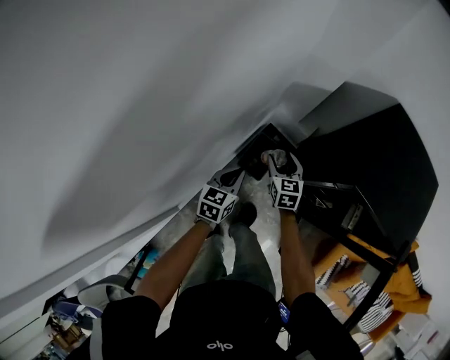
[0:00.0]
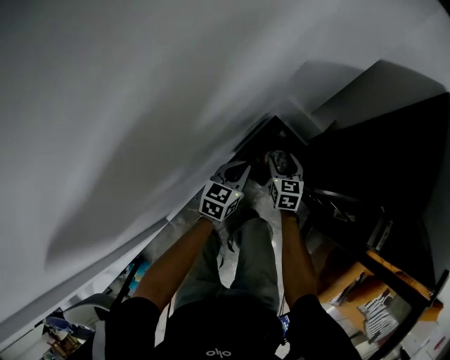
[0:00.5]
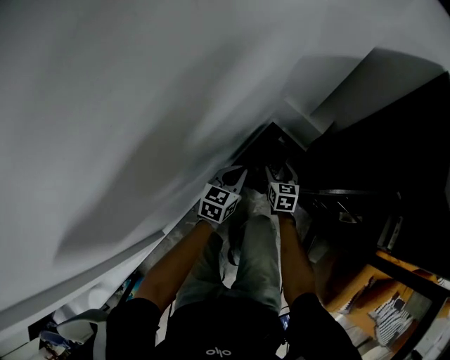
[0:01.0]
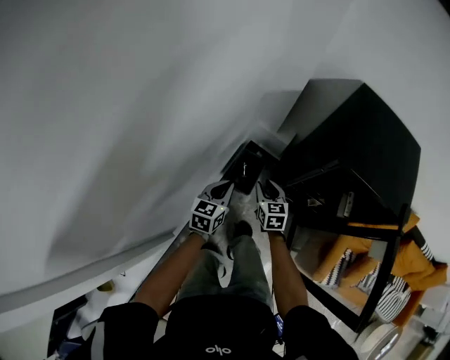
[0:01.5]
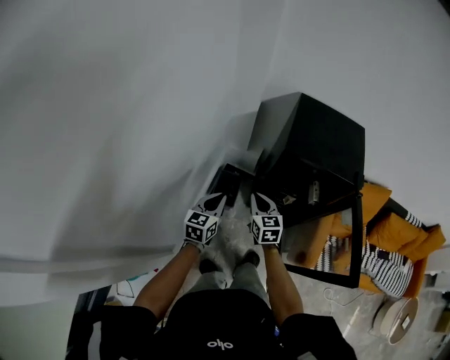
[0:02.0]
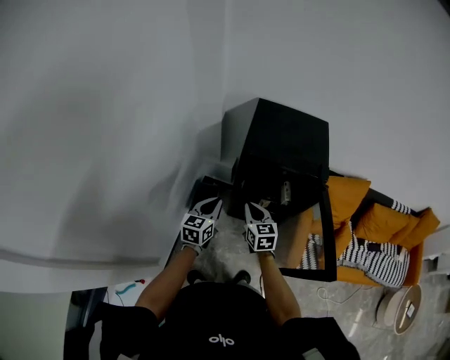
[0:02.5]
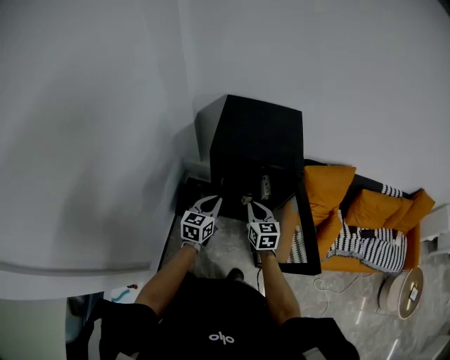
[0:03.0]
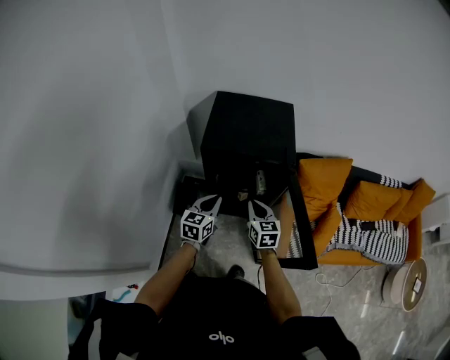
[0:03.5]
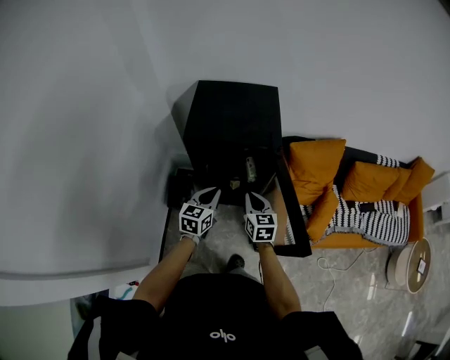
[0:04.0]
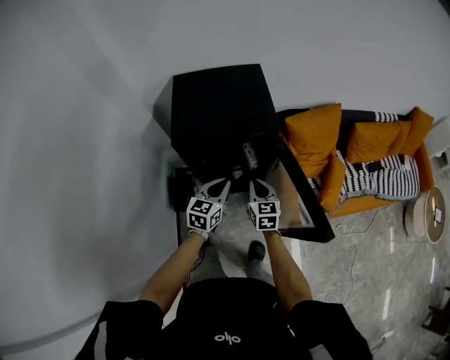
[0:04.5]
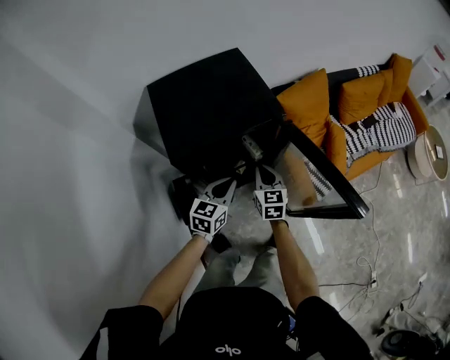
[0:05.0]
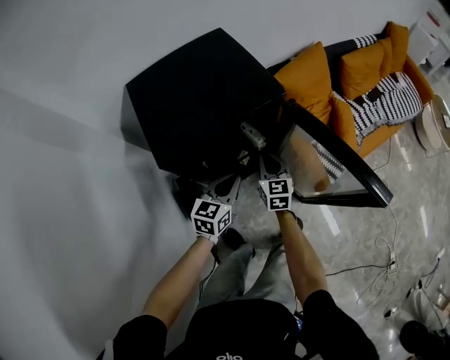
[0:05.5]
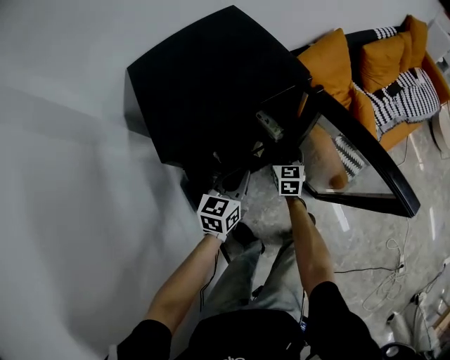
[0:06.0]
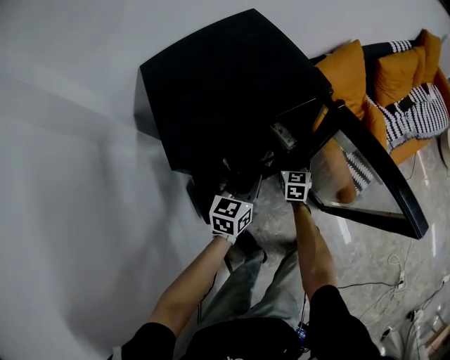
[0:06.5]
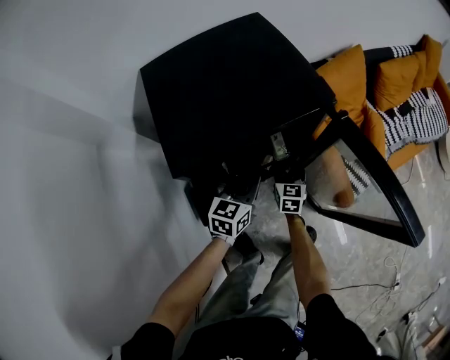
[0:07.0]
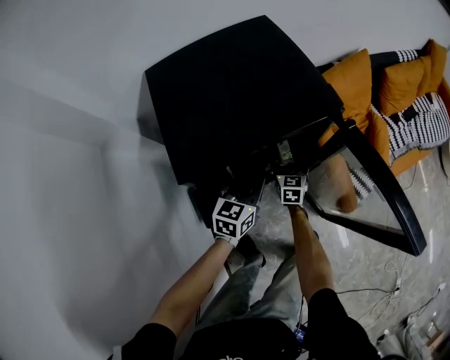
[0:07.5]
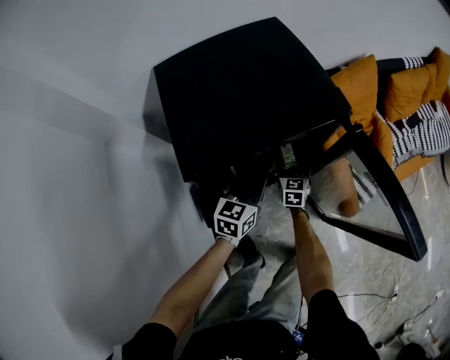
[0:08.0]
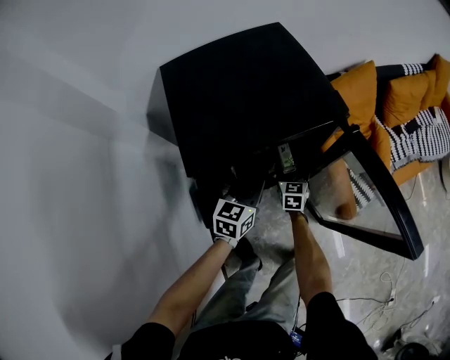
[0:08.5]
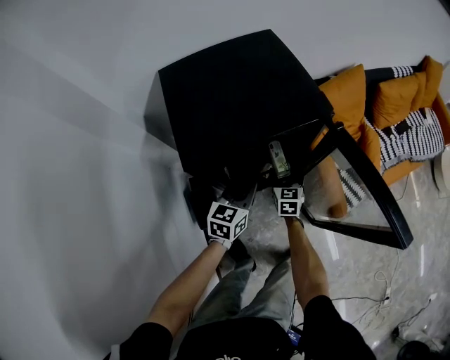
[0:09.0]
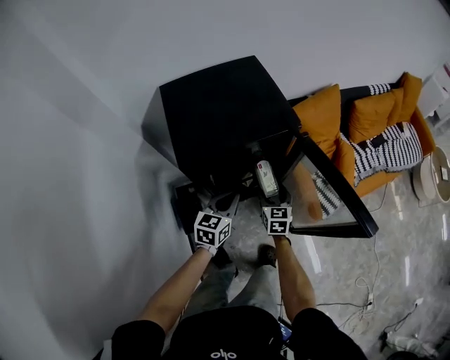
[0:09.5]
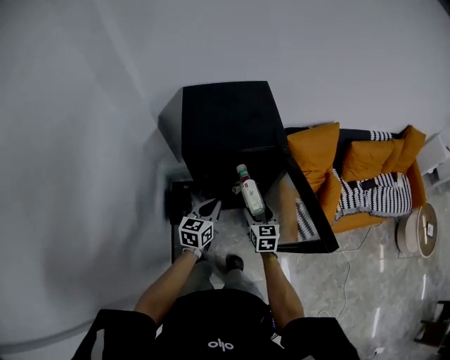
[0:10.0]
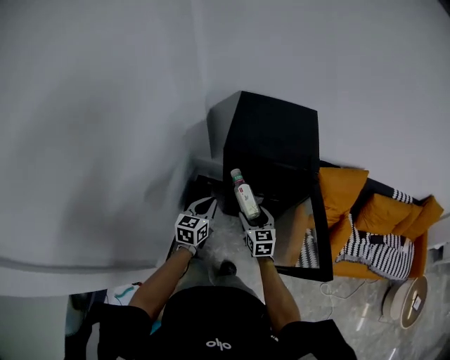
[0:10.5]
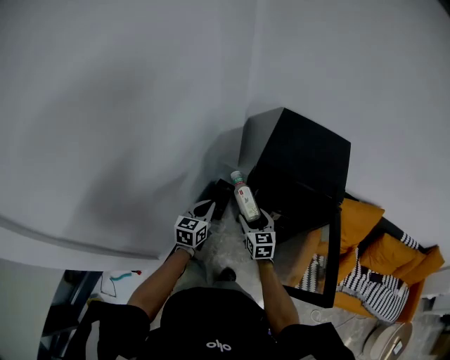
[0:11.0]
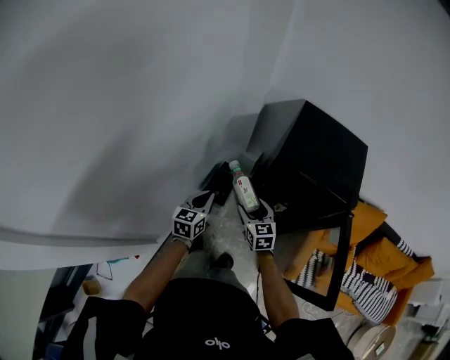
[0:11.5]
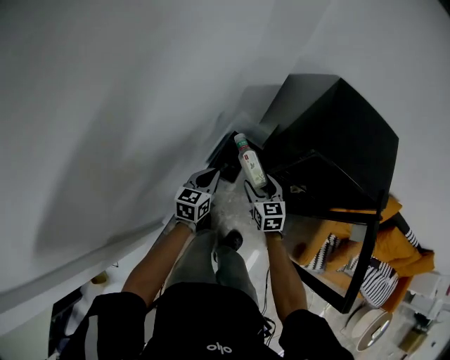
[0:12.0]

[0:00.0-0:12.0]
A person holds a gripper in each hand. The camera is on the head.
0.0 to 2.0 s: The right gripper is displaced backward and upward by about 25 cm, and closes its fingers. Meanwhile the left gripper is displaced upward and backward by some 20 cm.
2.0 to 4.0 s: The grippers both shift to the right by some 30 cm.
4.0 to 6.0 s: The right gripper is displaced downward by approximately 25 cm, swivels approximately 30 degrees, and opens. The left gripper is displaced downward by approximately 15 cm, and turns by some 30 degrees.
6.0 to 8.0 s: The left gripper shifts by some 5 cm; the right gripper shifts some 5 cm to the left, and opens up.
8.0 to 10.0 s: The right gripper is displaced upward and backward by approximately 25 cm; the left gripper moves backward and upward, about 15 cm, and swivels some 20 degrees.
10.0 to 12.0 s: The right gripper shifts by approximately 35 cm, and rotates some 40 degrees; the left gripper shifts by some 35 cm, and rotates roughly 30 degrees.

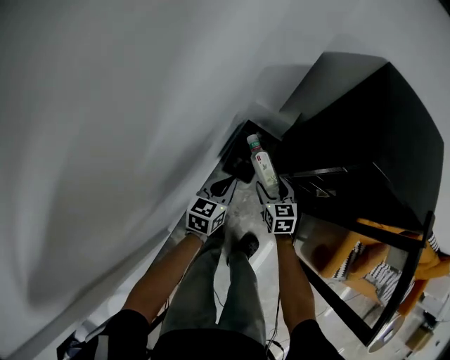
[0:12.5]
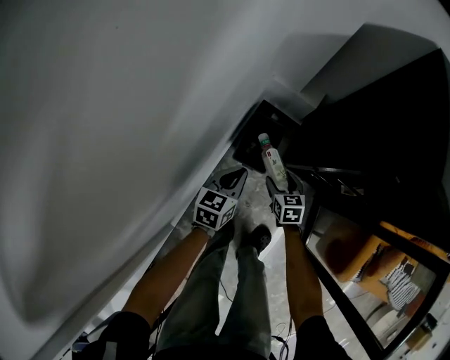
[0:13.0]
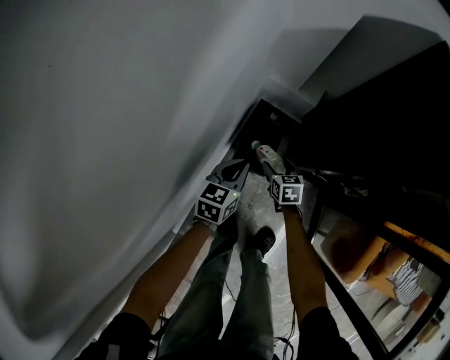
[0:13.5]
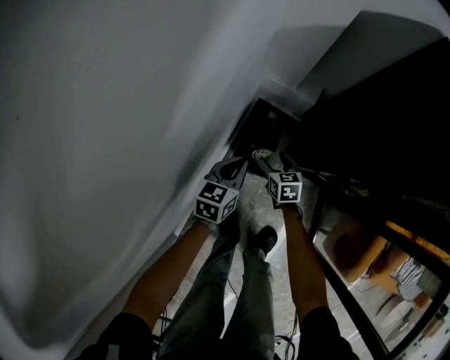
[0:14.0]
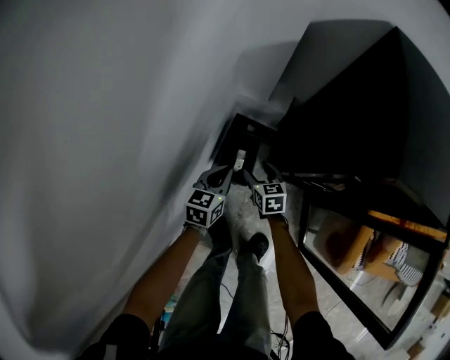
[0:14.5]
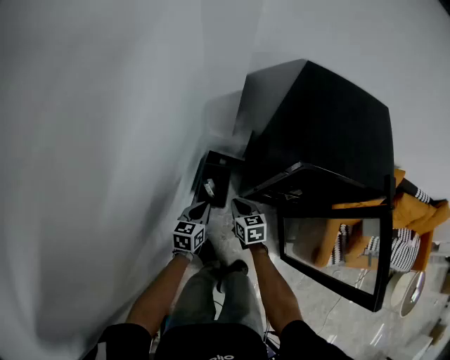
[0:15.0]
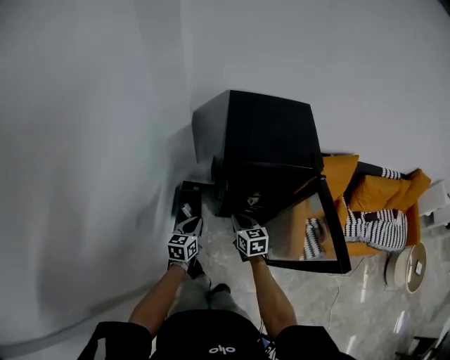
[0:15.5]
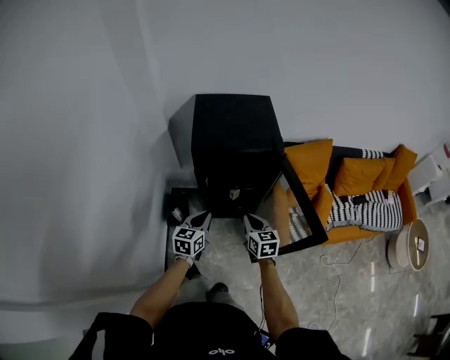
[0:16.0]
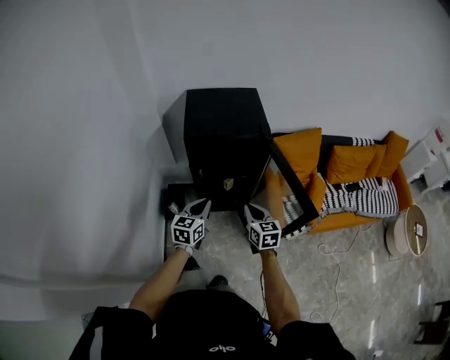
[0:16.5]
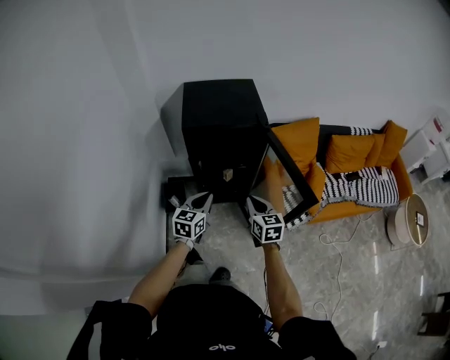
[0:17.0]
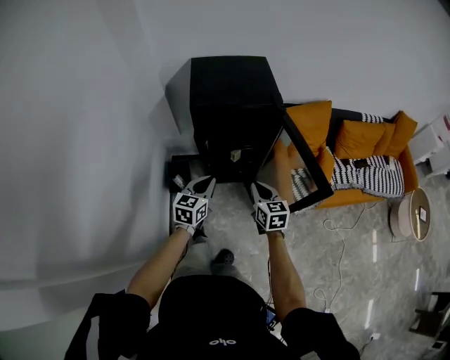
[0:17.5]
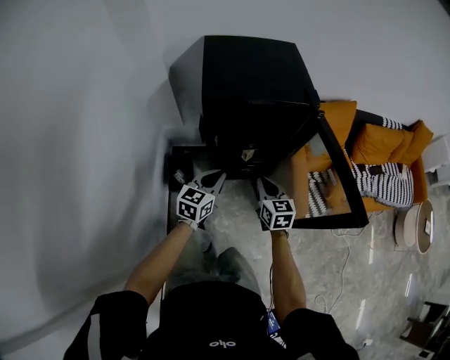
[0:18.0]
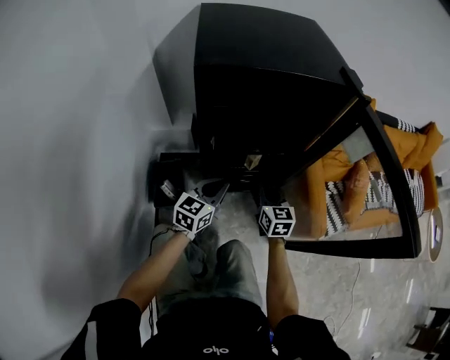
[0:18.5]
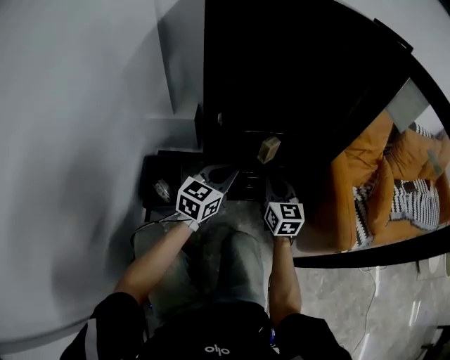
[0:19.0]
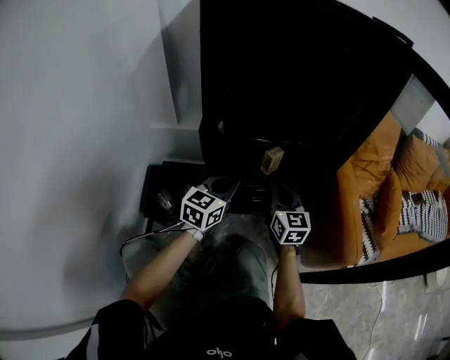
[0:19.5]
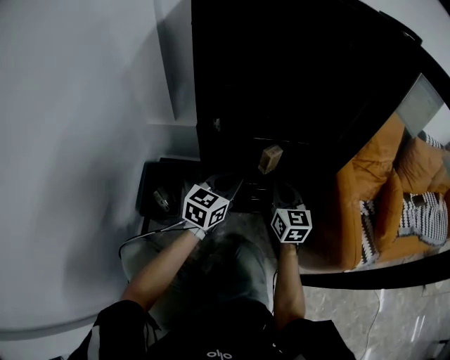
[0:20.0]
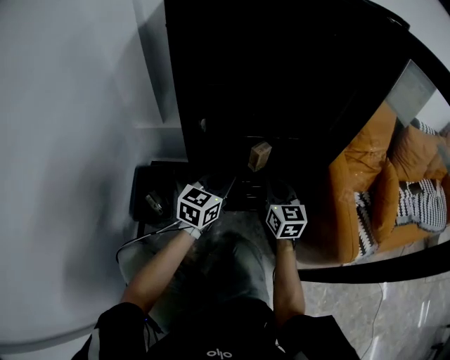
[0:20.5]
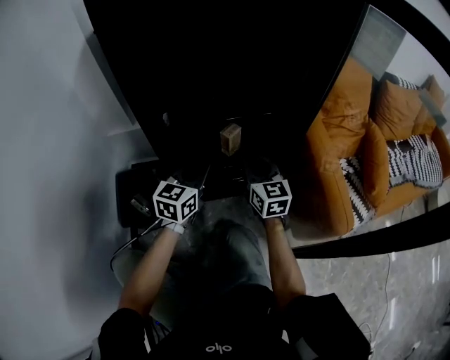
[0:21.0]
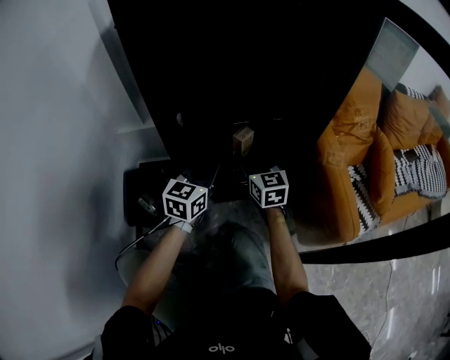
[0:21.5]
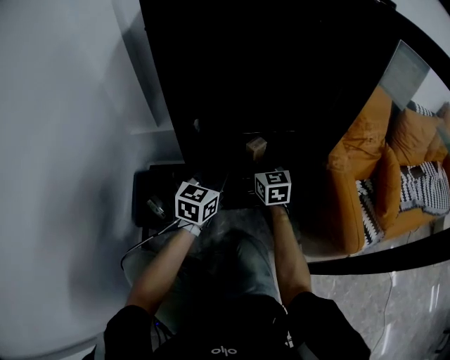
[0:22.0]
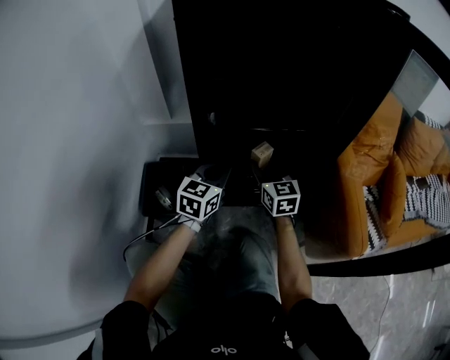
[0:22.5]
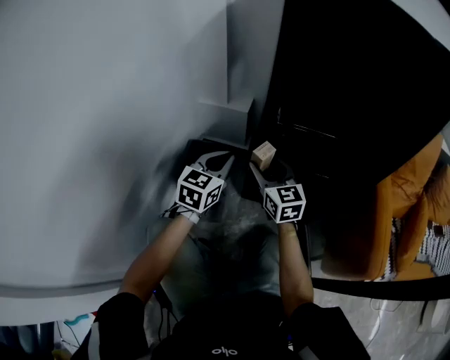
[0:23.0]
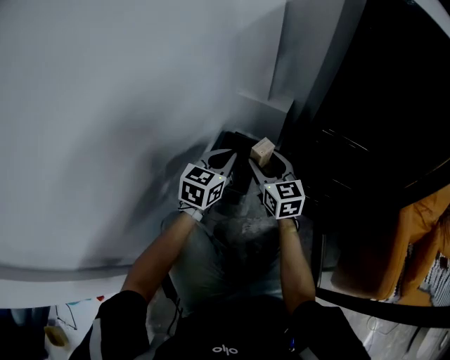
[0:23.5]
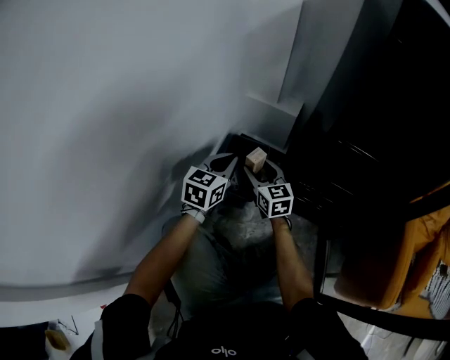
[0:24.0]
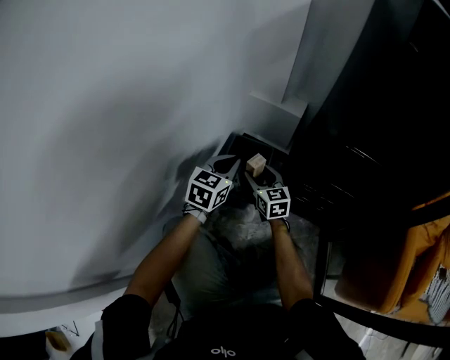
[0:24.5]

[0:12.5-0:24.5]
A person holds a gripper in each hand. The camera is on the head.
12.5 to 14.5 s: Both grippers travel together downward and forward, approximately 15 cm.
14.5 to 16.5 s: Both grippers travel together upward, to the right and backward, approximately 60 cm. The left gripper swivels about 30 degrees. The right gripper rotates roughly 30 degrees, and closes up.
16.5 to 18.5 s: Both grippers travel together downward and forward, about 35 cm.
18.5 to 20.5 s: The grippers both shift downward and forward by roughly 20 cm.
20.5 to 22.5 s: The right gripper is displaced to the left by about 5 cm, and opens its fingers.
22.5 to 24.5 s: The left gripper moves some 30 cm, and rotates approximately 20 degrees. The right gripper ends up about 40 cm from where it was, and turns by some 30 degrees.

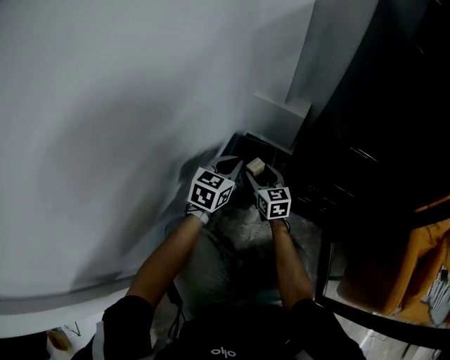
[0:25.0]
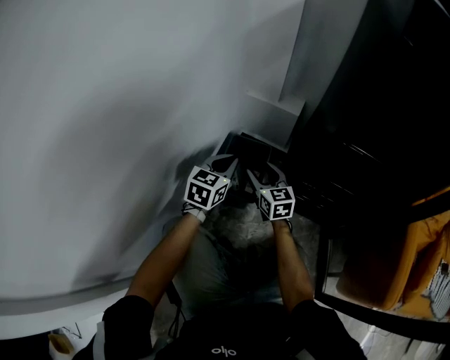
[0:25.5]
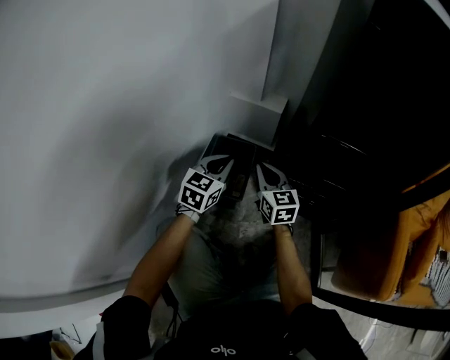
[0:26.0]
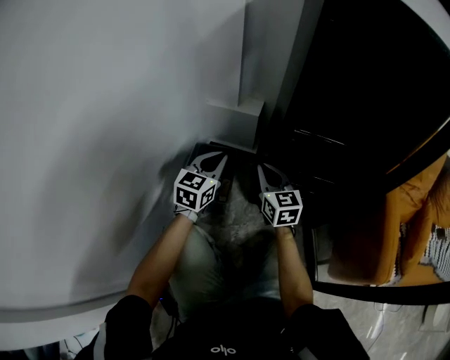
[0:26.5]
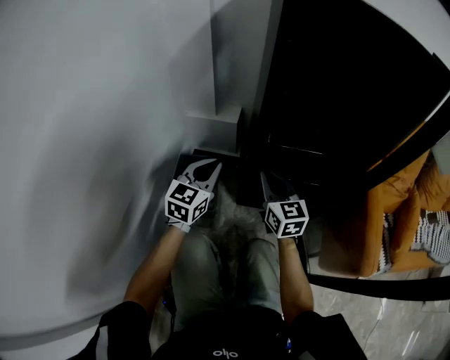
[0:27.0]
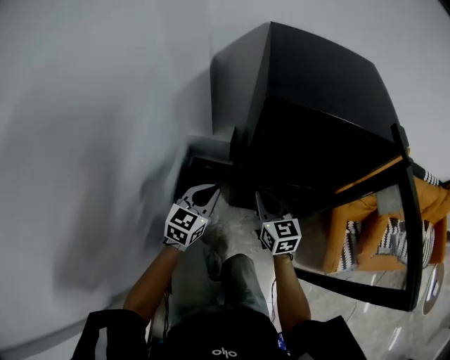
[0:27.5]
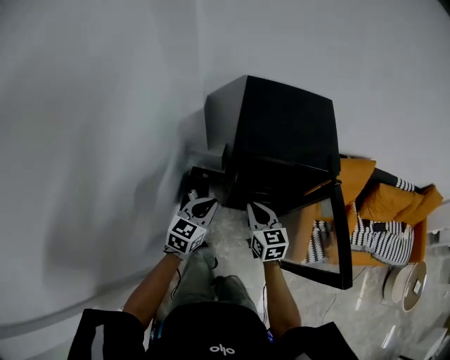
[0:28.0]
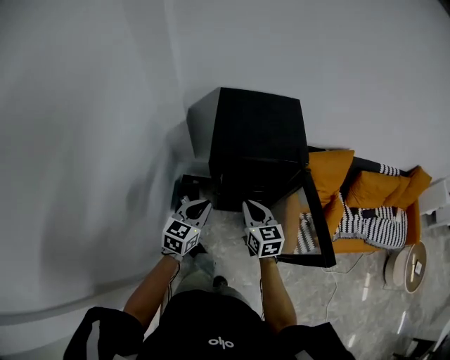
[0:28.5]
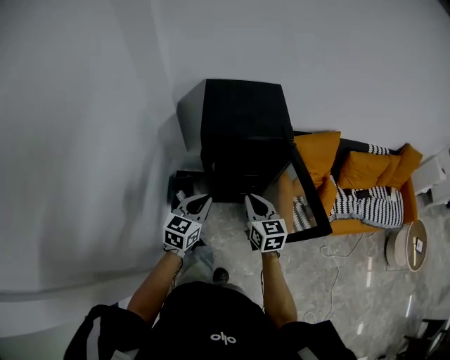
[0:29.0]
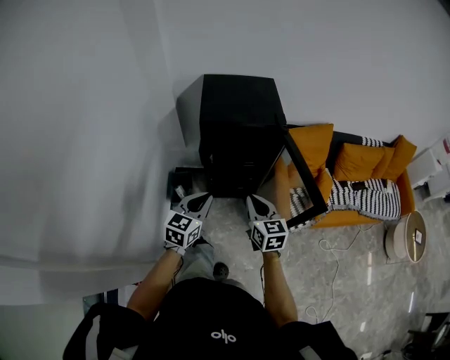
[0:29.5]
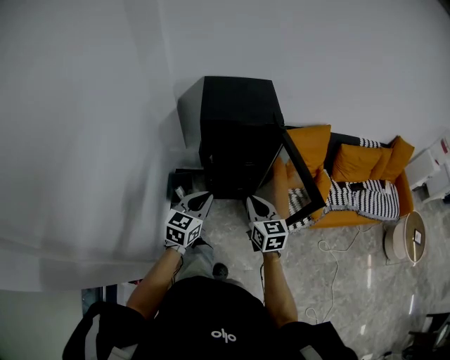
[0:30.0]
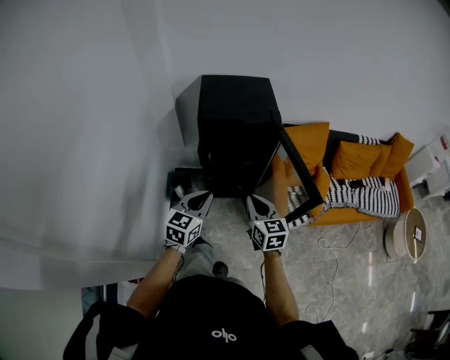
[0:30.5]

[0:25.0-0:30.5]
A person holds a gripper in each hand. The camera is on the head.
25.0 to 27.0 s: The left gripper is displaced to the right and upward by roughly 20 cm, while the right gripper heads to the right and upward, covering about 30 cm, rotates approximately 20 degrees, and closes its fingers.
27.0 to 28.5 s: Both grippers move upward, roughly 50 cm.
28.5 to 30.5 s: The right gripper shifts about 20 cm backward and to the right, while the left gripper travels backward by approximately 15 cm.
